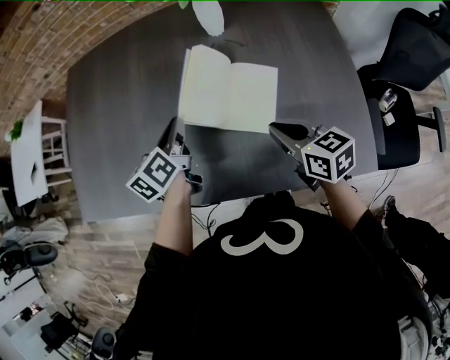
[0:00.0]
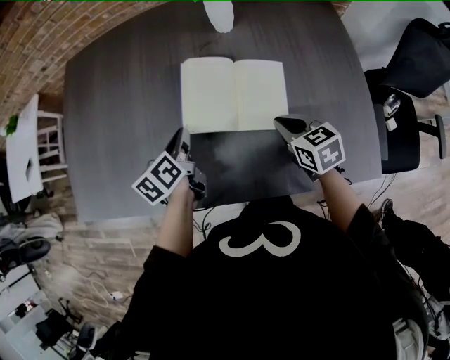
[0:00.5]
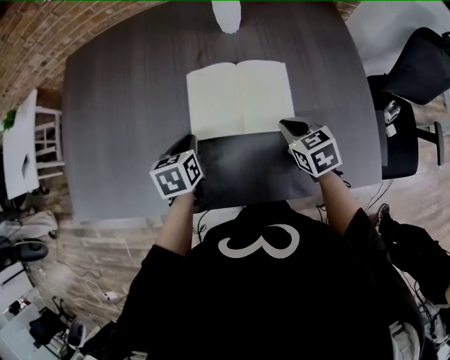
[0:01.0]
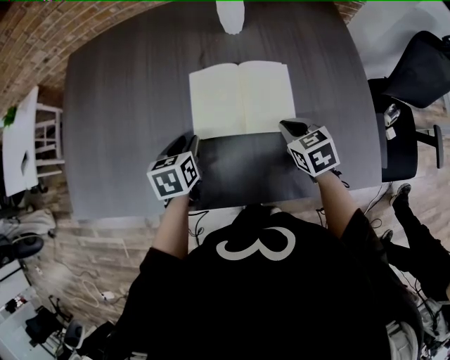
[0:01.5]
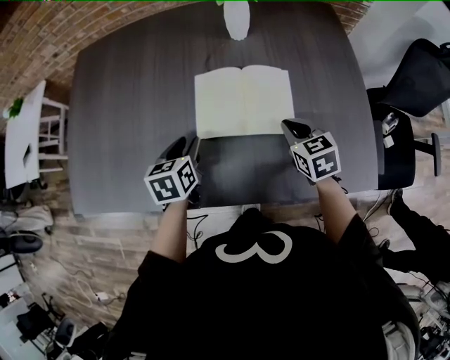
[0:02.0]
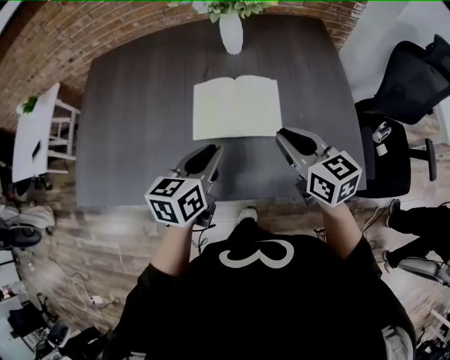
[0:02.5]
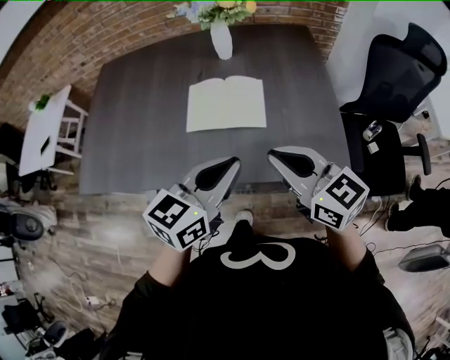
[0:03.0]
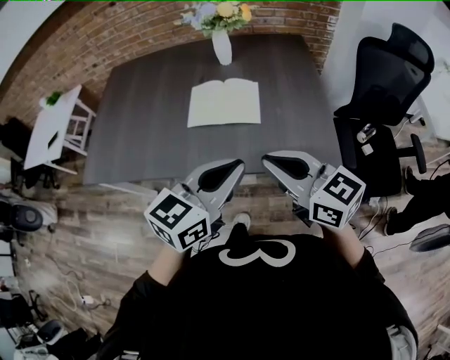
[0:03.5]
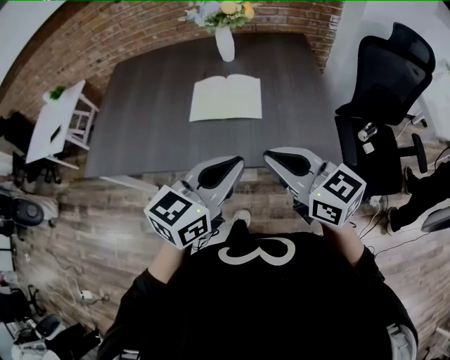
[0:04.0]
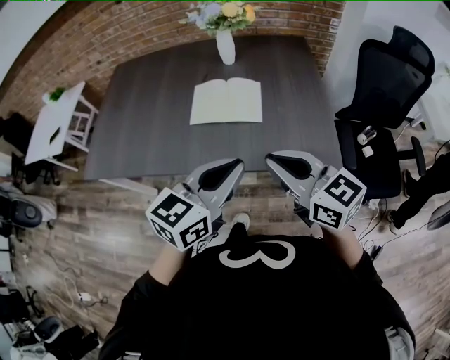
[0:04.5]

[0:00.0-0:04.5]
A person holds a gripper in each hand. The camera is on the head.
0:00.0 to 0:02.0: The grippers both shift downward by approximately 5 cm. The right gripper turns by some 30 degrees, while the left gripper turns by some 30 degrees, and opens up.
0:02.0 to 0:04.5: The left gripper goes about 40 cm backward, upward and to the right, points its fingers roughly 30 degrees further upward, and closes. The right gripper shifts some 35 cm backward and upward, and tips its fingers upward by some 30 degrees.

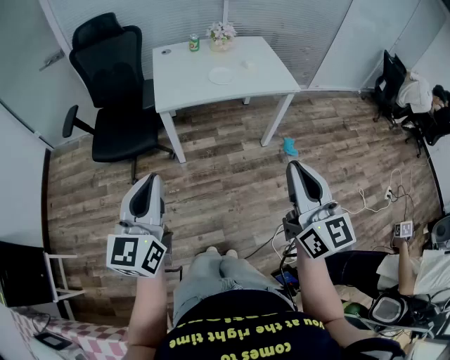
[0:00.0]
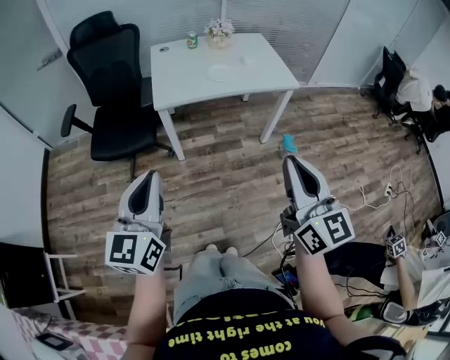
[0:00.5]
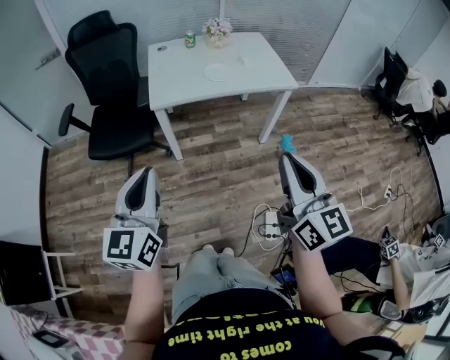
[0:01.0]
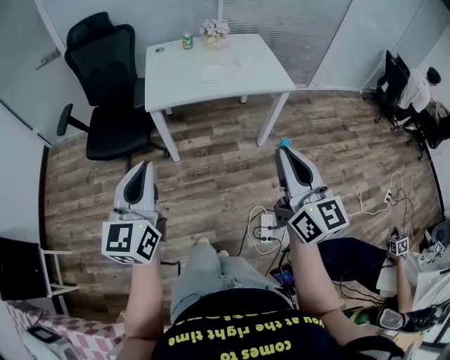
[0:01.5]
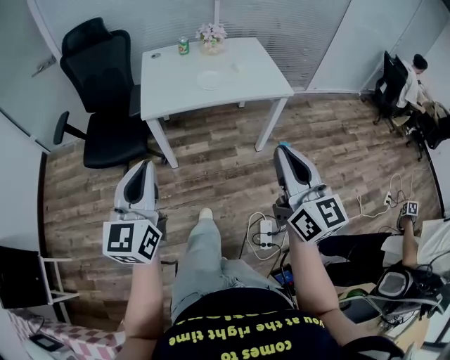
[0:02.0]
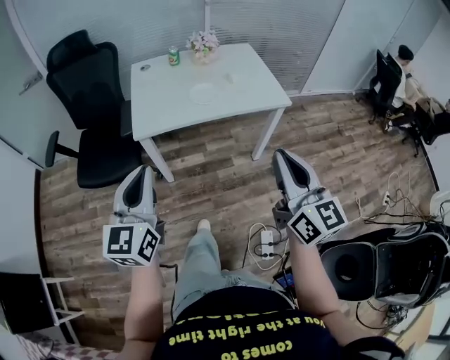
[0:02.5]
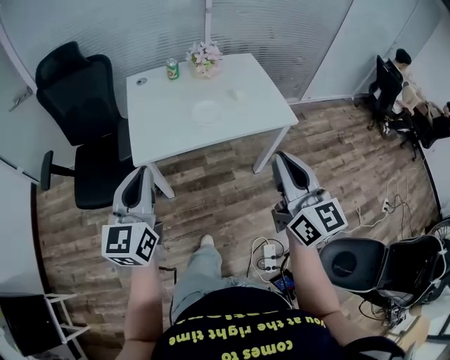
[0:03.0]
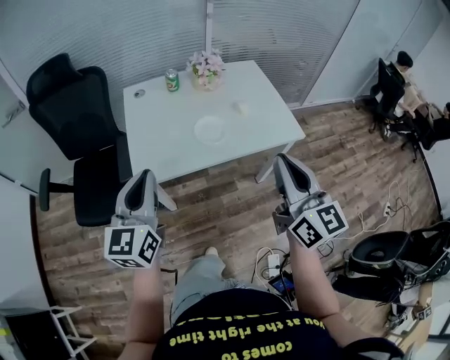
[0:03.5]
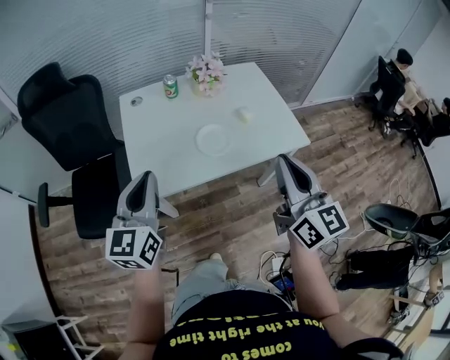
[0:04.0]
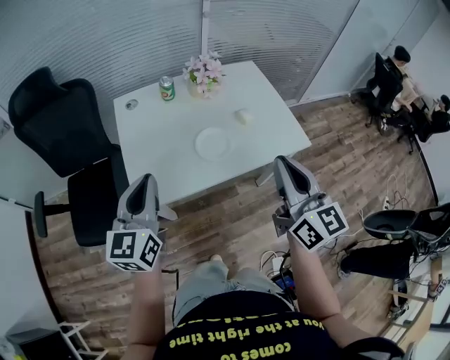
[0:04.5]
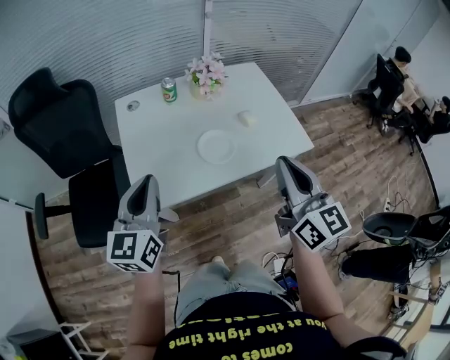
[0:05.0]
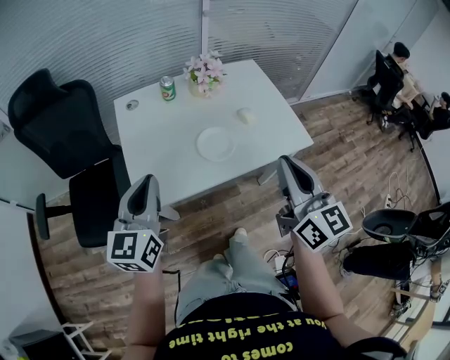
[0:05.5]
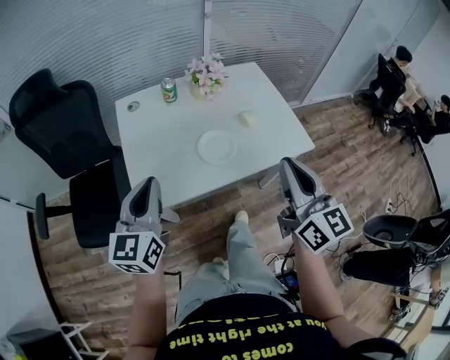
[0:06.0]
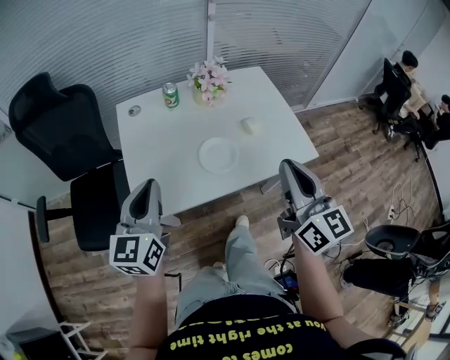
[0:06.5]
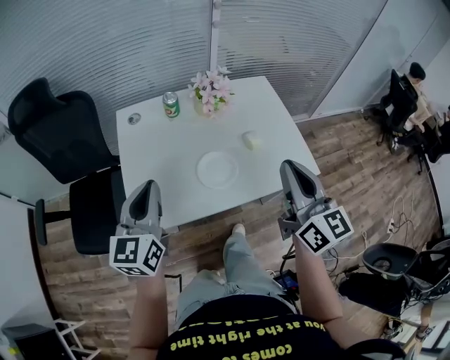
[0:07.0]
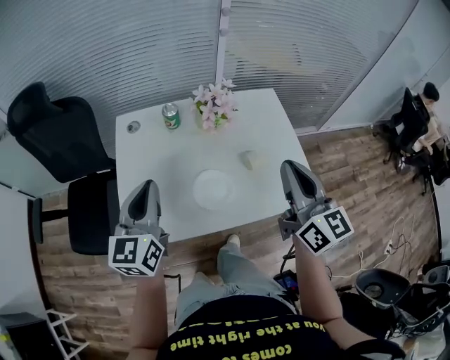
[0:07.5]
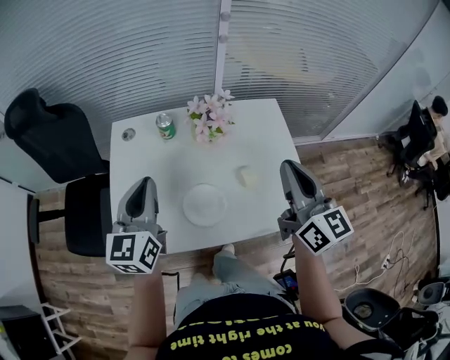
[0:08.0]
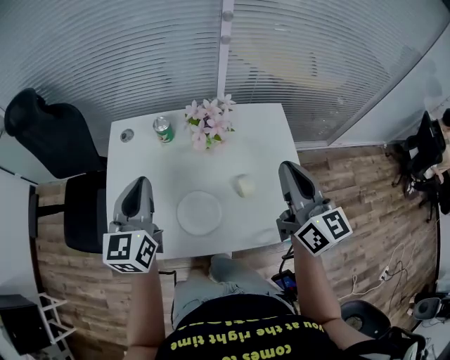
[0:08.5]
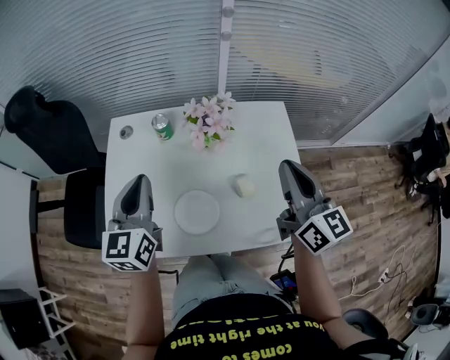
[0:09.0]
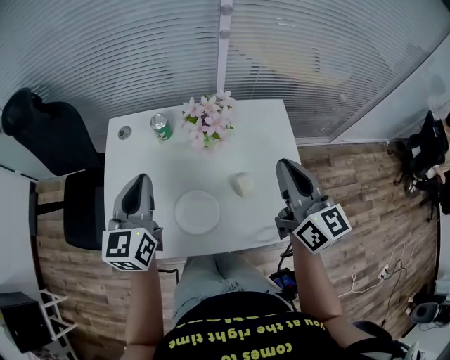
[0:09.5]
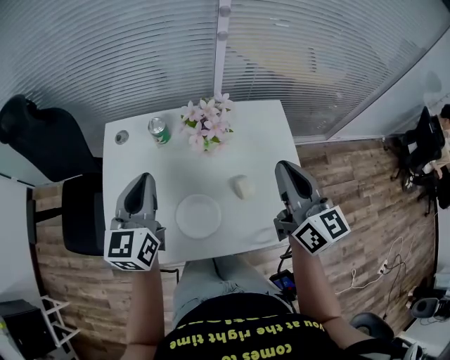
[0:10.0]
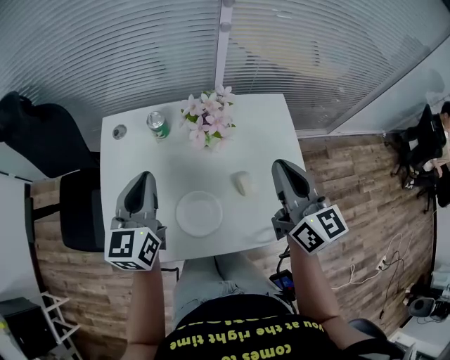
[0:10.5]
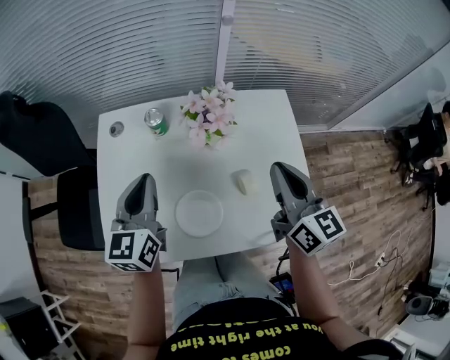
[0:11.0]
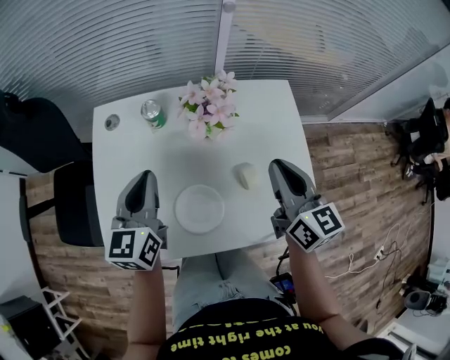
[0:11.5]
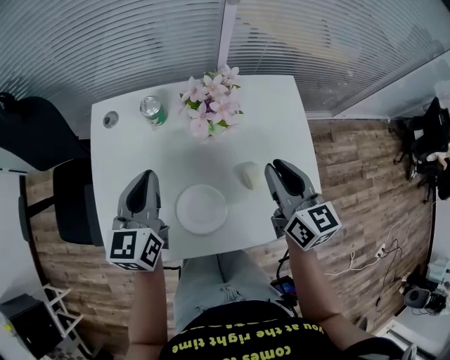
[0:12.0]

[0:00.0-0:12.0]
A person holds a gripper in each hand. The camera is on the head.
0:00.0 to 0:02.0: Both grippers move forward and to the right, about 10 cm.
0:02.0 to 0:04.0: The two grippers go roughly 35 cm forward.
0:04.0 to 0:06.0: The grippers move only a little.
0:06.0 to 0:08.0: The two grippers go approximately 25 cm forward and to the right.
0:08.0 to 0:10.0: The grippers both shift forward by approximately 5 cm.
0:10.0 to 0:12.0: The left gripper goes approximately 10 cm downward. Meanwhile the right gripper travels downward by about 15 cm.

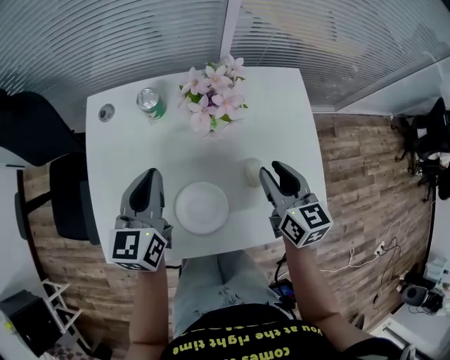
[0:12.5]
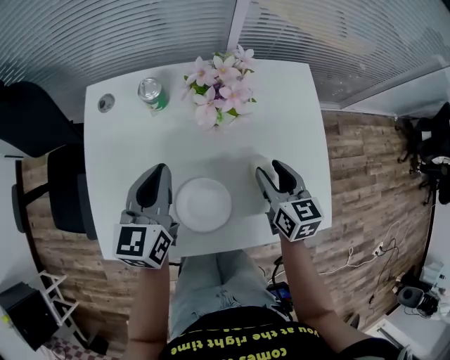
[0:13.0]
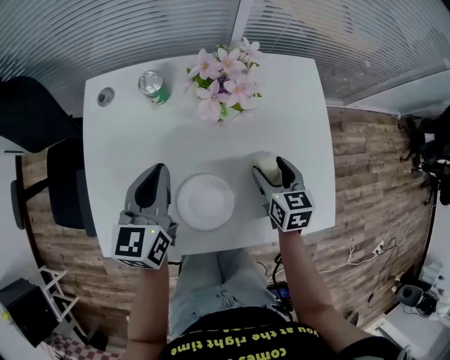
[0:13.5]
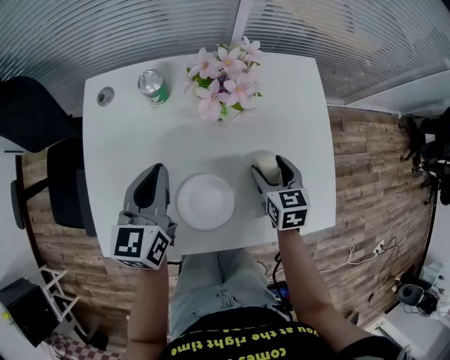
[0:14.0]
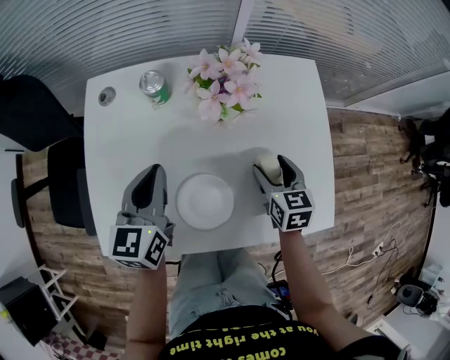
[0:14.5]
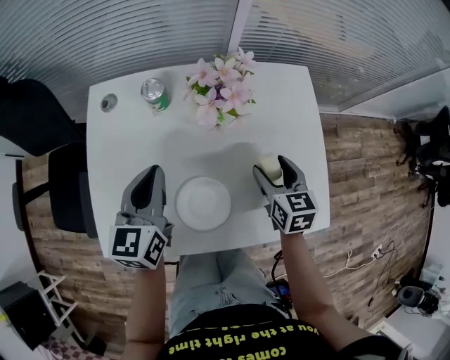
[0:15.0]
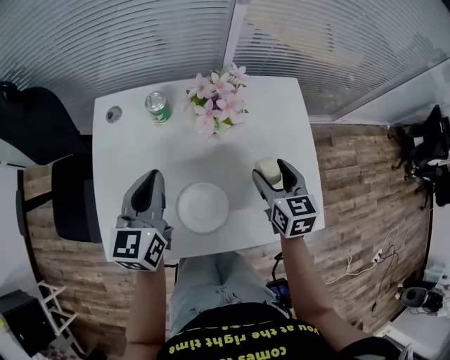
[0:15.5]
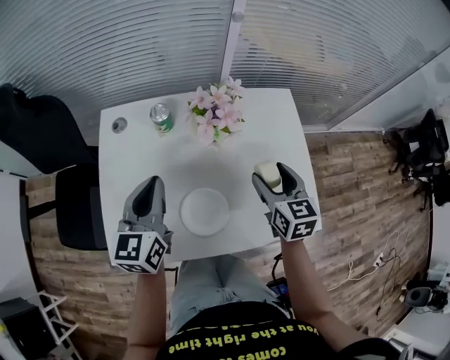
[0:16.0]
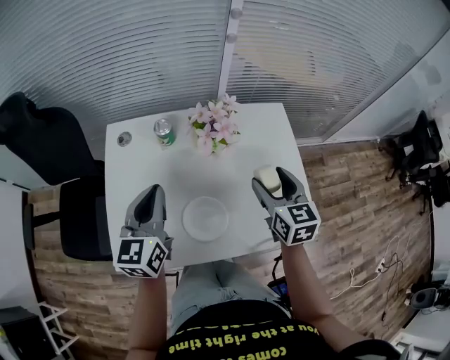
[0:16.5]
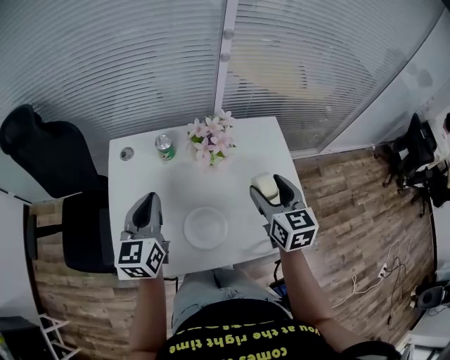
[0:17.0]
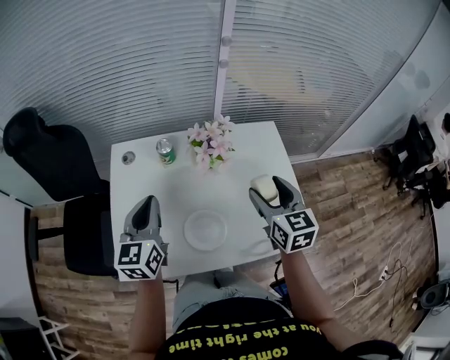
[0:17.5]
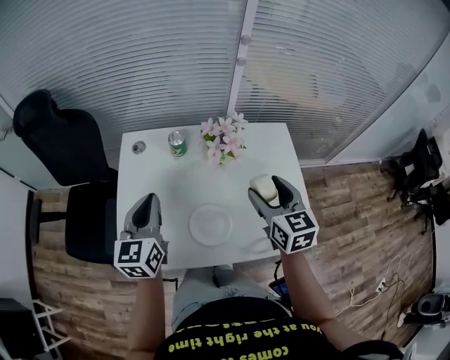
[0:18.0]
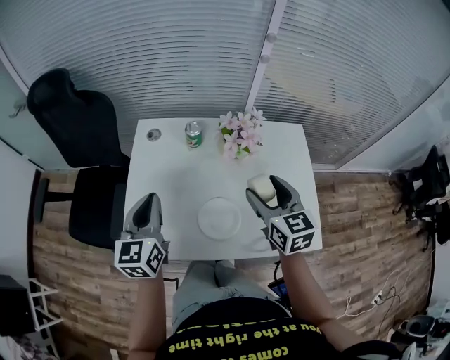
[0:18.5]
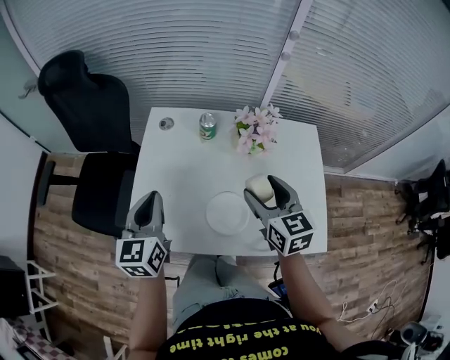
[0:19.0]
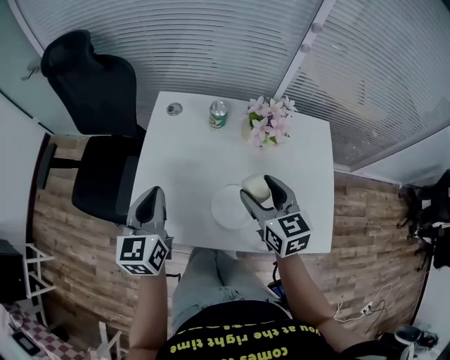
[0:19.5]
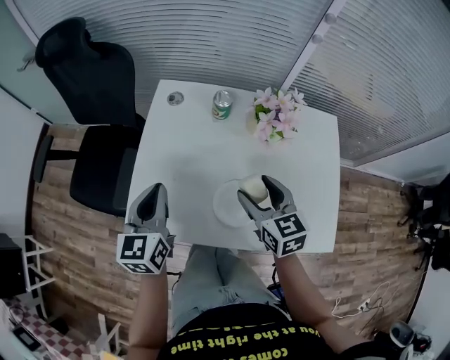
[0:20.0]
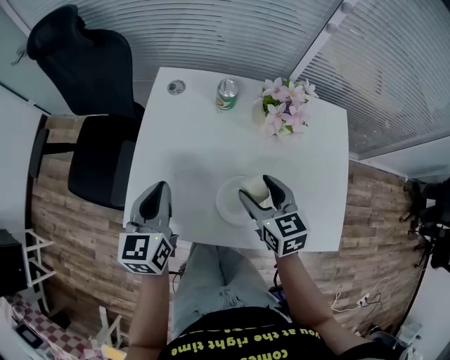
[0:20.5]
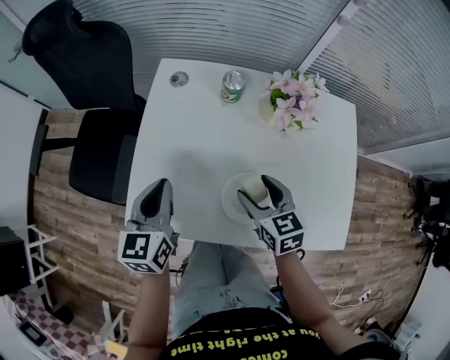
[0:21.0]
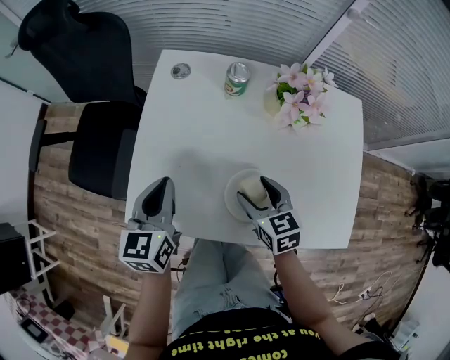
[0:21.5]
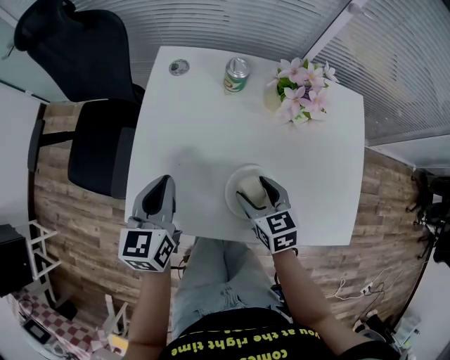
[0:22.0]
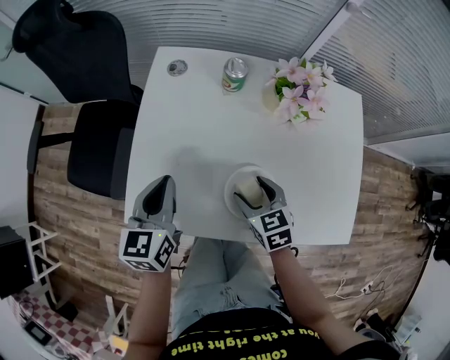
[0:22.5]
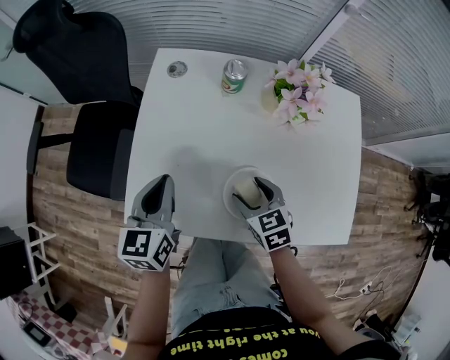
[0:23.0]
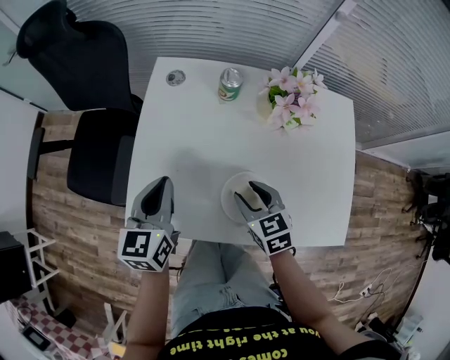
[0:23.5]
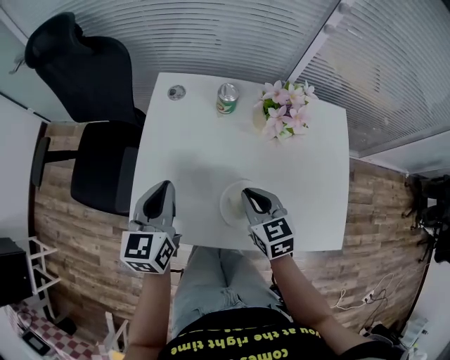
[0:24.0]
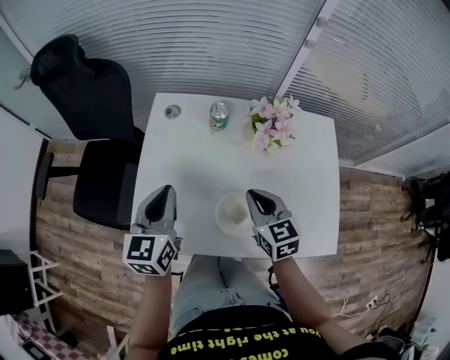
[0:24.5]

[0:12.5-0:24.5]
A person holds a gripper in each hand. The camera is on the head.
0:12.5 to 0:14.5: The right gripper moves downward, roughly 10 cm, and opens up.
0:14.5 to 0:16.5: The left gripper moves upward, roughly 10 cm; the right gripper is displaced upward by about 20 cm.
0:16.5 to 0:18.5: The left gripper moves to the left and backward, about 10 cm. Meanwhile the right gripper shifts some 10 cm to the left.
0:18.5 to 0:20.5: The right gripper goes about 15 cm downward and to the left. Meanwhile the left gripper moves downward, about 10 cm.
0:20.5 to 0:22.5: The right gripper moves downward, about 10 cm.
0:22.5 to 0:24.5: The right gripper heads upward, covering about 10 cm, and closes its fingers; the left gripper moves upward, roughly 10 cm.
